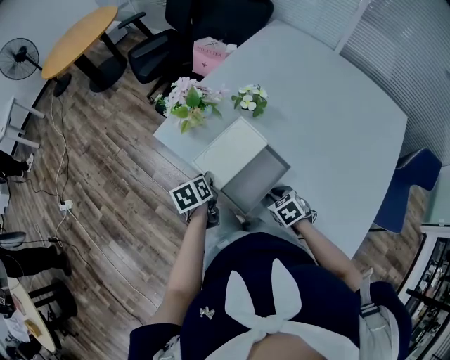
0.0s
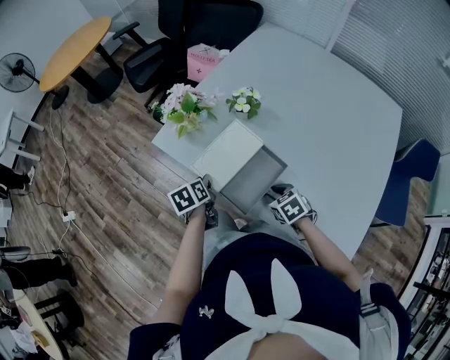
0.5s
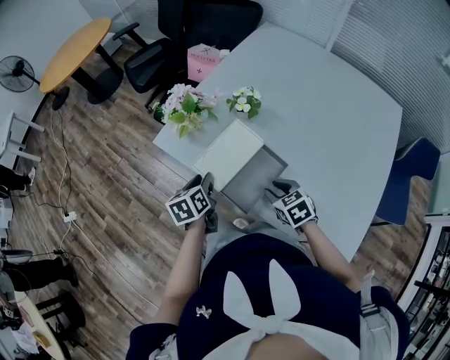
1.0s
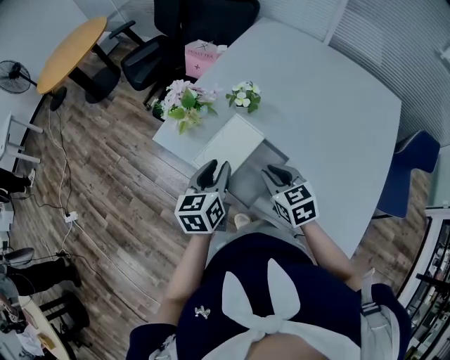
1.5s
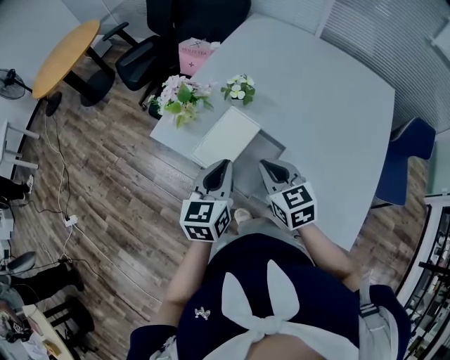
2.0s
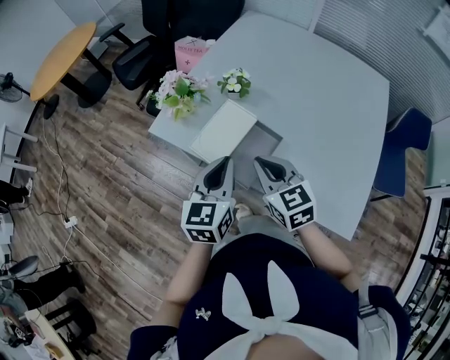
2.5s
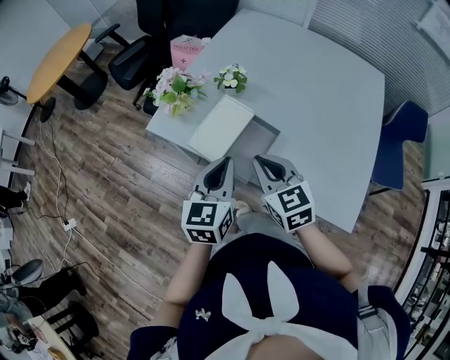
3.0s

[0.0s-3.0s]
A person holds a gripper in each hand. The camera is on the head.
0.0s to 1.5s: The left gripper moves upward and to the right, about 15 cm, and rotates some 40 degrees. The right gripper is displaced upward by approximately 15 cm, and turns by some 30 degrees.
1.5s to 3.0s: The right gripper moves upward and backward, some 10 cm, while the left gripper moves backward and upward, about 10 cm, and closes up.

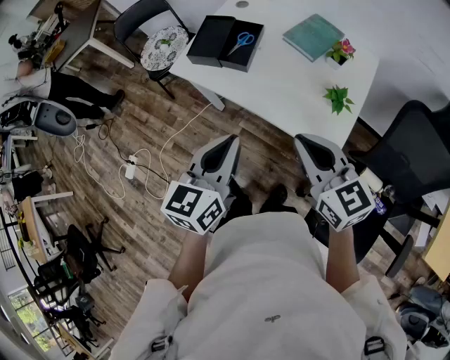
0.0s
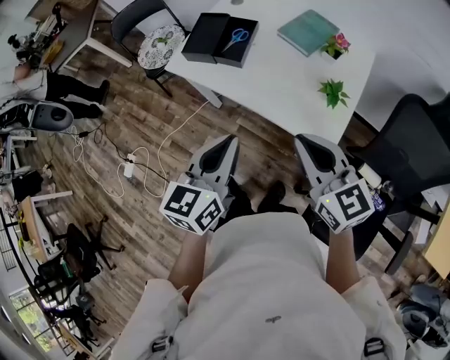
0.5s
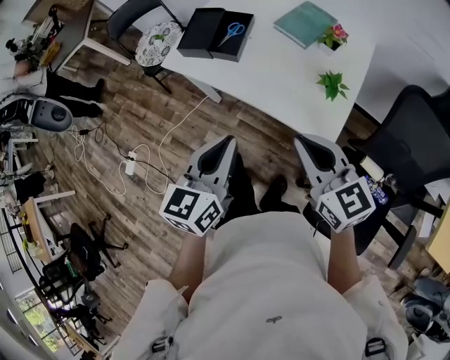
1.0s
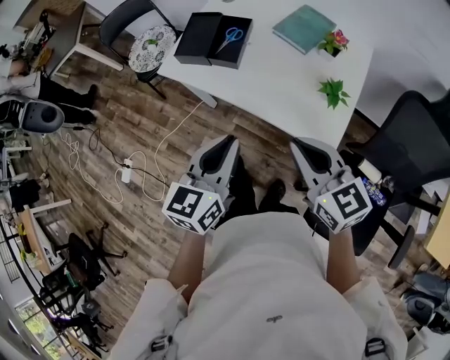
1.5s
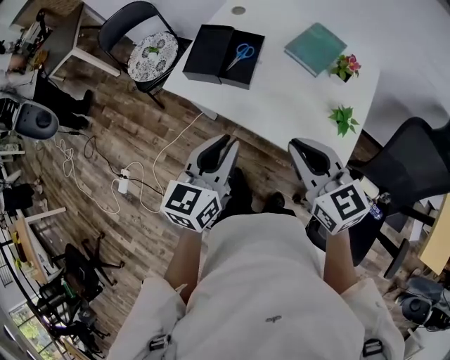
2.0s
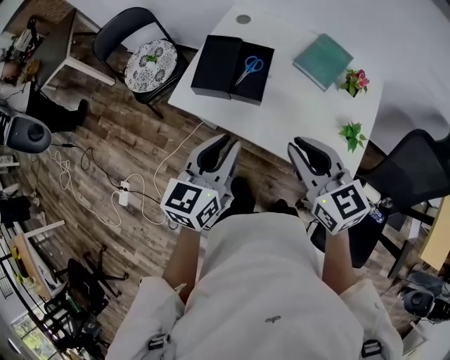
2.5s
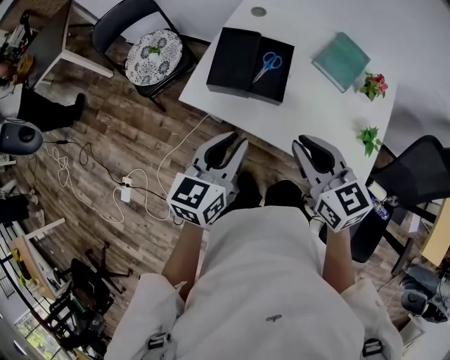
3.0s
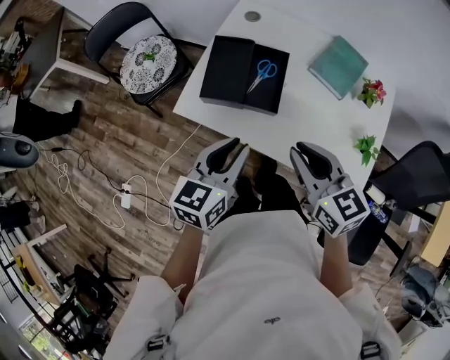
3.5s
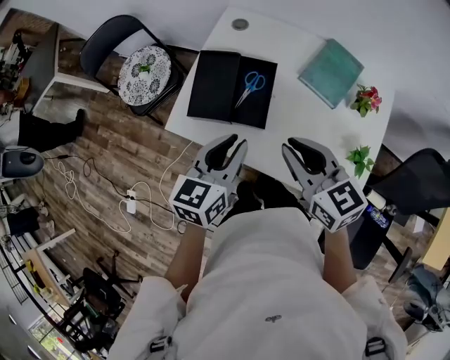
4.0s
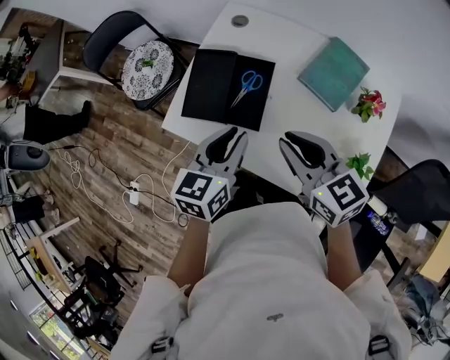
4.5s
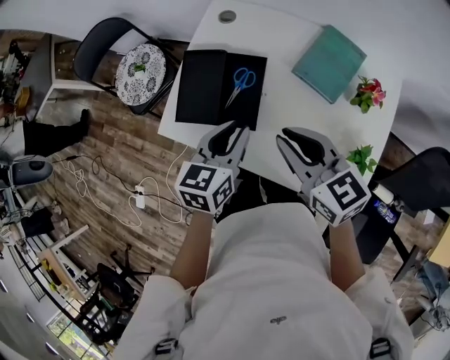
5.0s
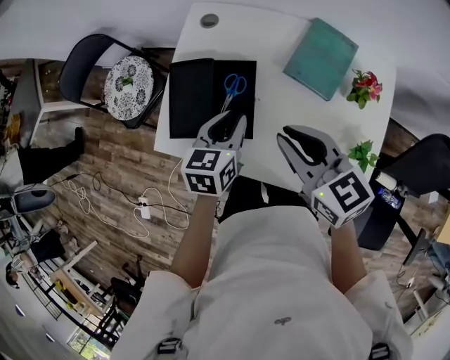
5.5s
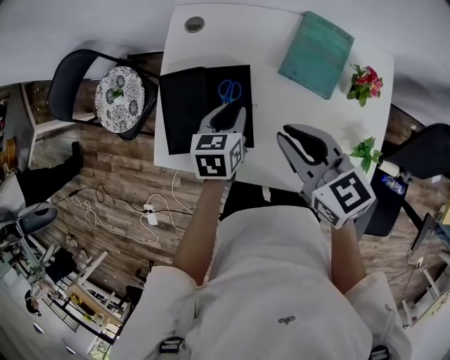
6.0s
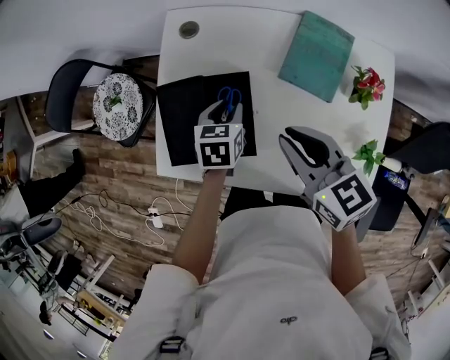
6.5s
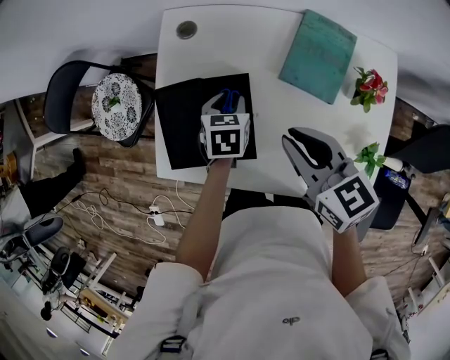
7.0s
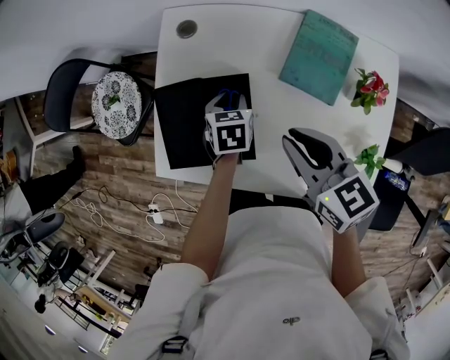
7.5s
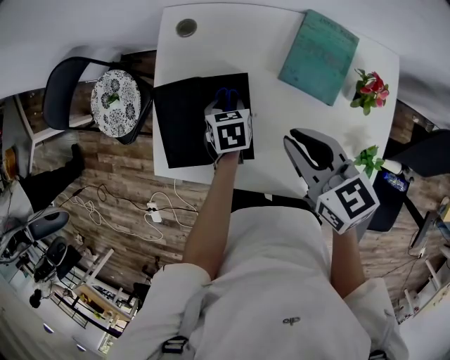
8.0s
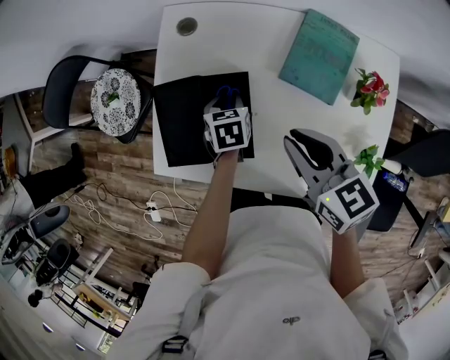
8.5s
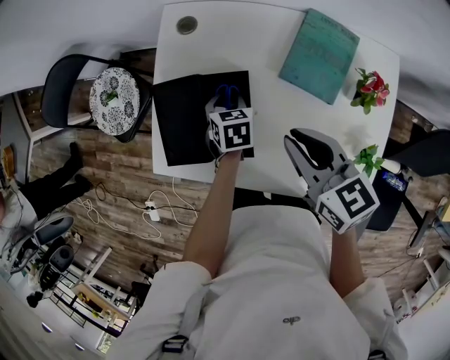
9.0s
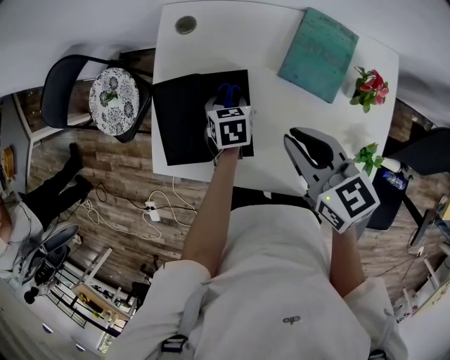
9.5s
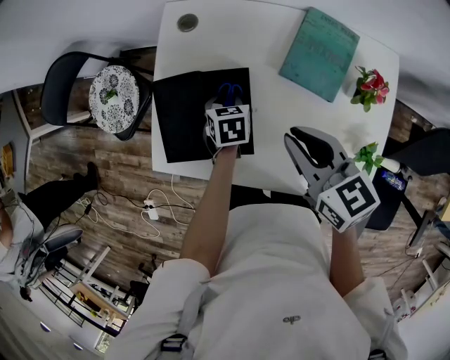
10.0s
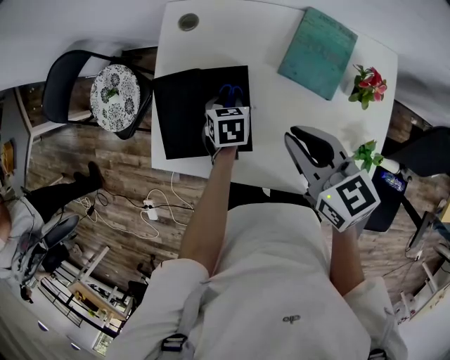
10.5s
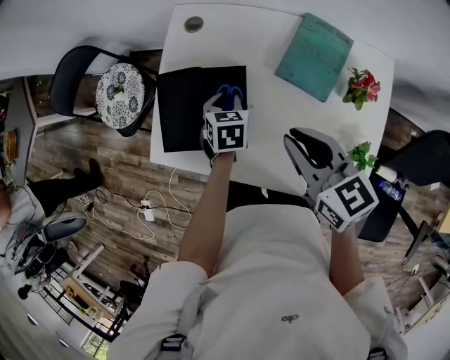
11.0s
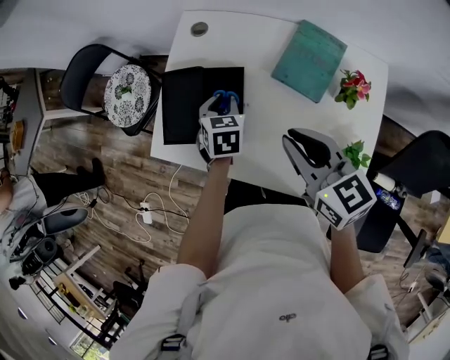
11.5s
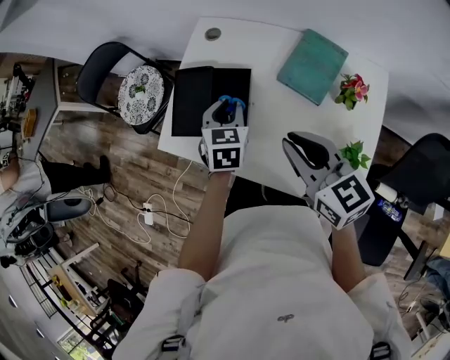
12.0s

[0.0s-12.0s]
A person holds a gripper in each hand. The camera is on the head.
0.0s to 2.0s: Both grippers travel together forward, roughly 10 cm.
2.0s to 4.0s: Both grippers move forward, about 20 cm.
4.0s to 6.0s: The left gripper goes some 20 cm forward, downward and to the right, and swivels some 20 degrees; the right gripper heads forward, covering approximately 10 cm.
6.0s to 8.0s: The left gripper goes roughly 10 cm downward and forward.
8.0s to 10.0s: There are only small adjustments of the grippers.
10.0s to 12.0s: The left gripper moves upward and backward, about 15 cm, and changes its angle by roughly 20 degrees, while the right gripper shifts about 10 cm backward and upward.

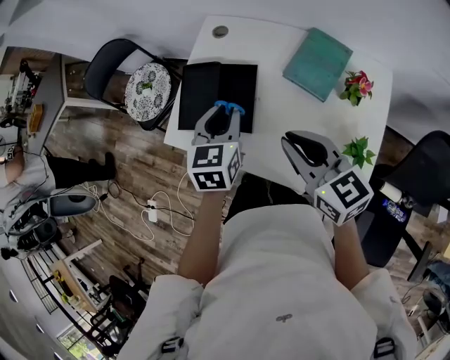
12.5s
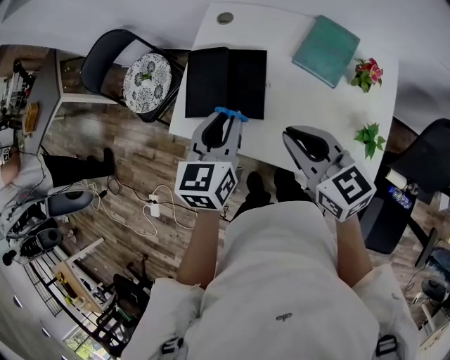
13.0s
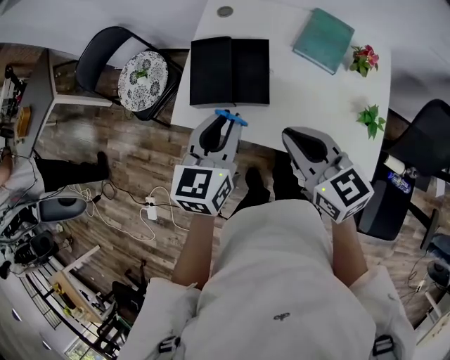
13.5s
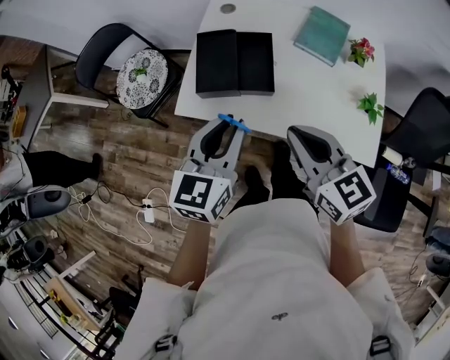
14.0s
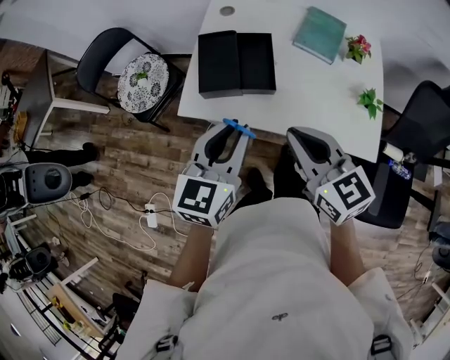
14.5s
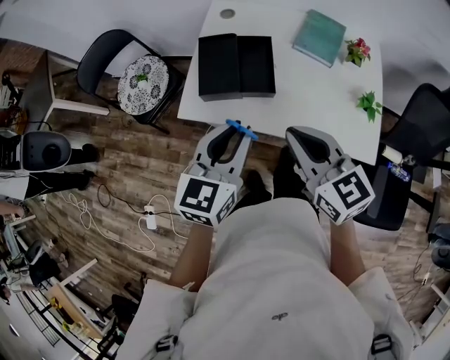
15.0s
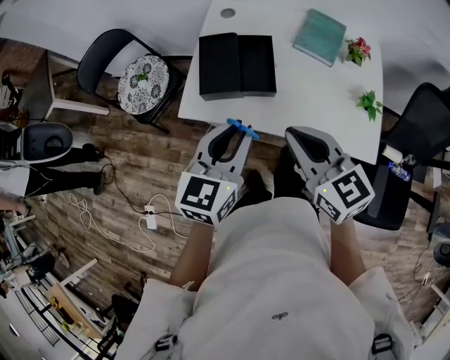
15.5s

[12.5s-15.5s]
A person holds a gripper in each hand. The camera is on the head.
12.5s to 14.0s: The right gripper goes approximately 15 cm to the left and backward. Meanwhile the left gripper shifts about 20 cm backward and to the left, and turns by approximately 20 degrees.
14.0s to 15.5s: The grippers stay close to where they were, moving slightly.

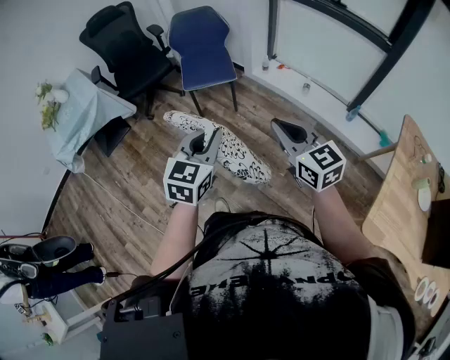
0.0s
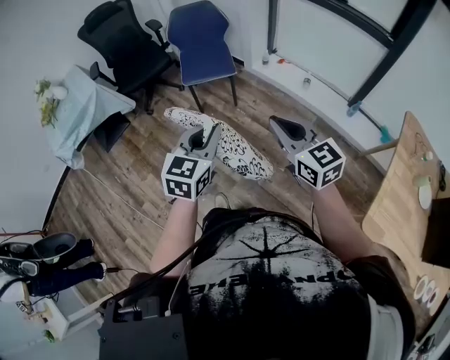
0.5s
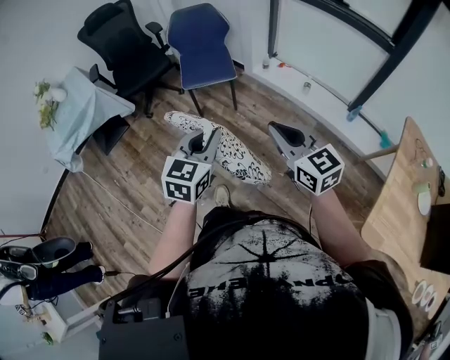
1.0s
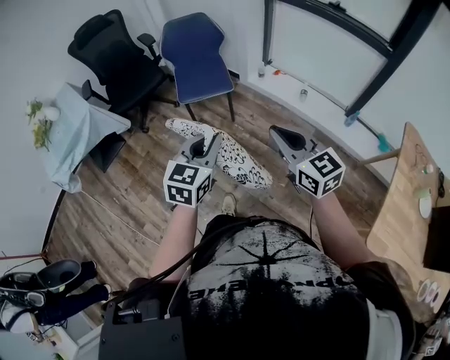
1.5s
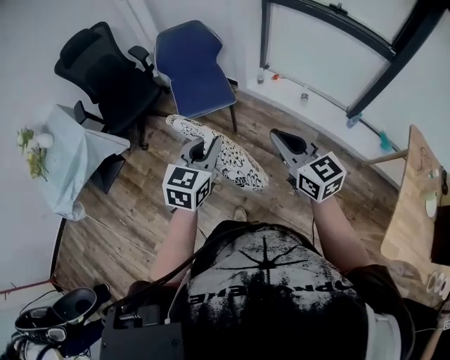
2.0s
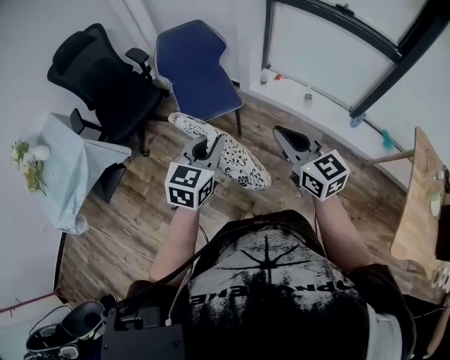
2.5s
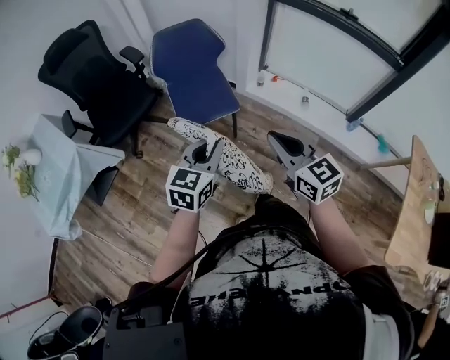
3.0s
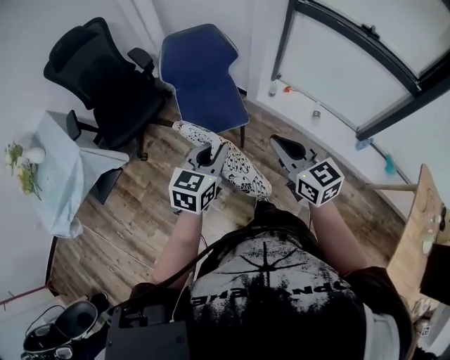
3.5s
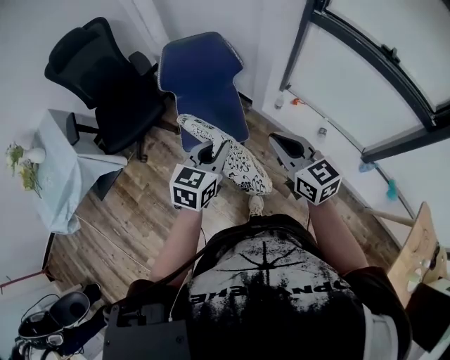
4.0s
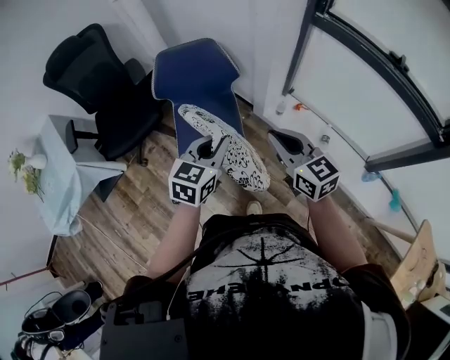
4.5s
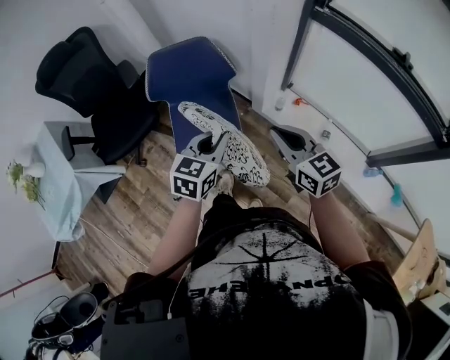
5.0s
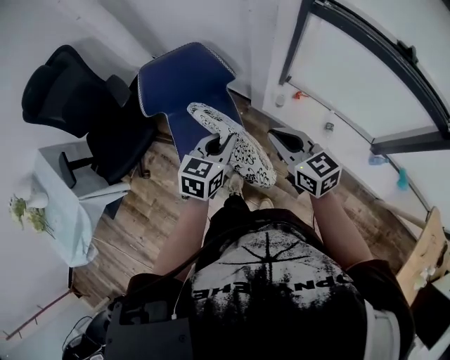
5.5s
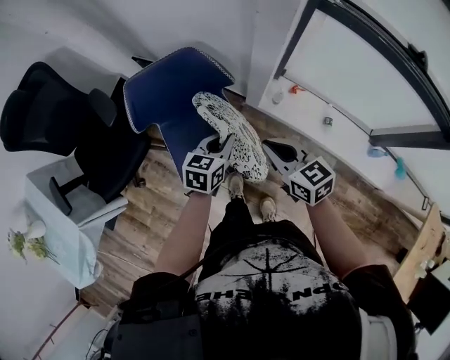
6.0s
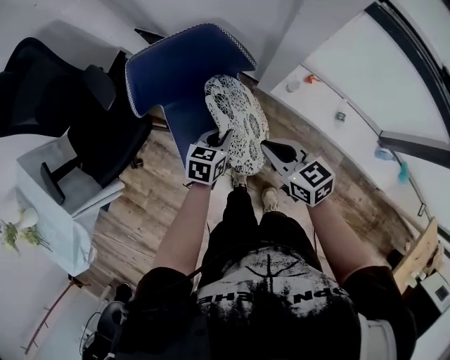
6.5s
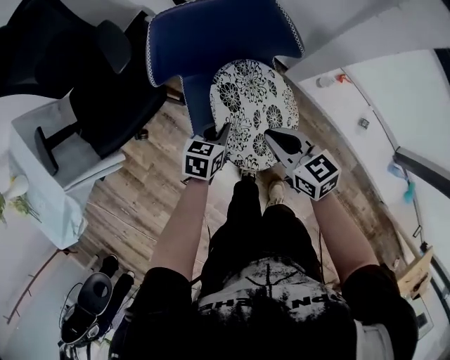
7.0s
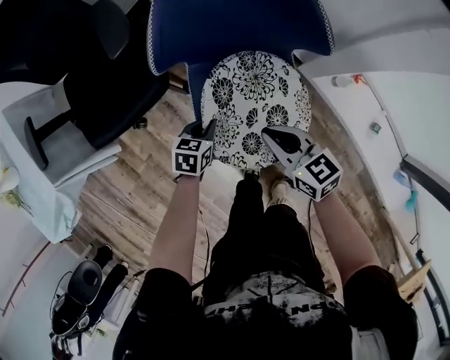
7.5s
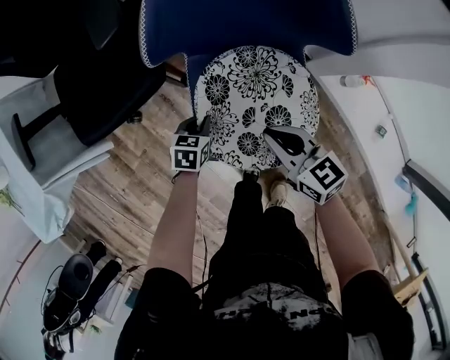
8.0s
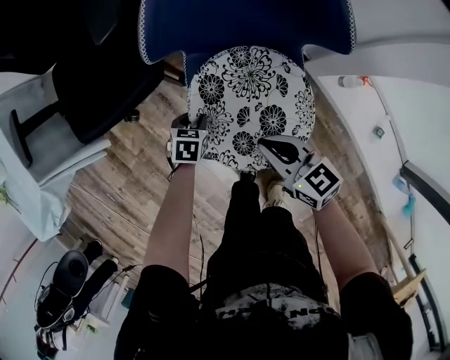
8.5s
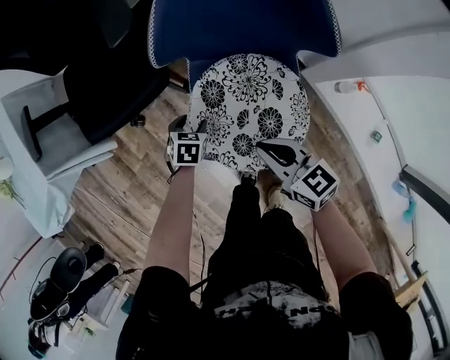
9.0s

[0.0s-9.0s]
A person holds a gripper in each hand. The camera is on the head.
0.0s to 2.0s: The right gripper heads forward and to the left, covering some 20 cm. The left gripper moves forward, roughly 20 cm.
2.0s to 4.5s: The grippers both shift forward by roughly 40 cm.
4.5s to 7.0s: The left gripper heads downward, forward and to the left, covering roughly 40 cm, and rotates about 30 degrees. The right gripper heads downward, to the left and forward, covering approximately 40 cm, and rotates approximately 20 degrees.
7.0s to 9.0s: The right gripper shifts roughly 5 cm downward. The left gripper moves approximately 20 cm, swivels roughly 30 degrees, and opens up.
